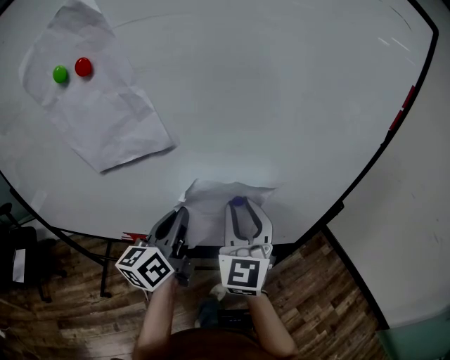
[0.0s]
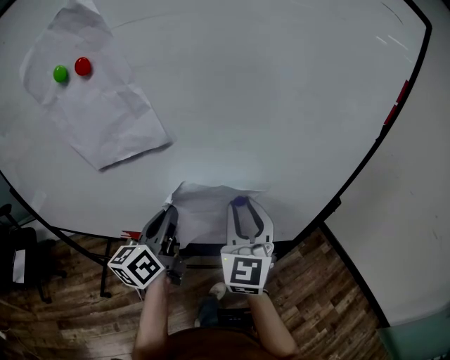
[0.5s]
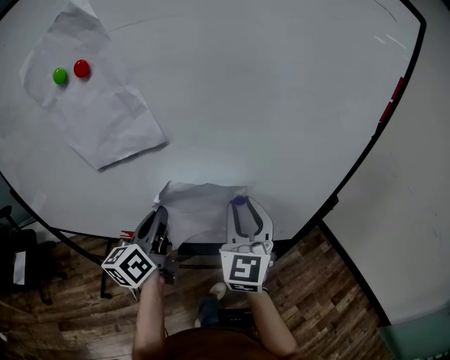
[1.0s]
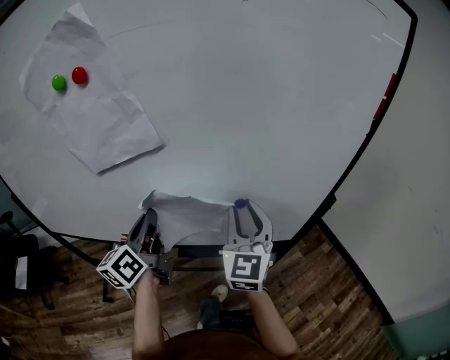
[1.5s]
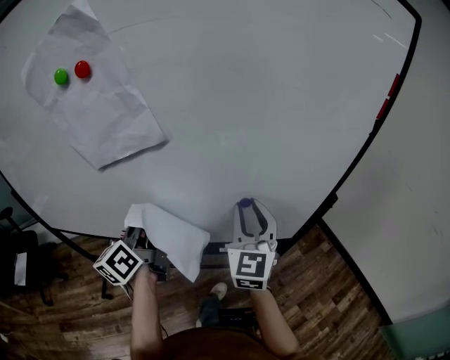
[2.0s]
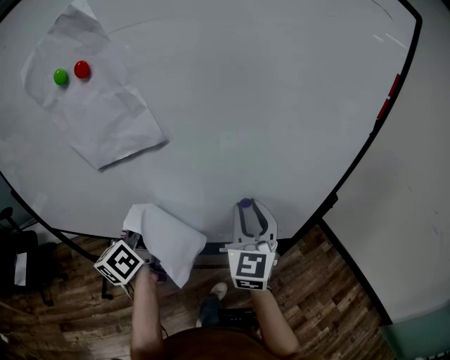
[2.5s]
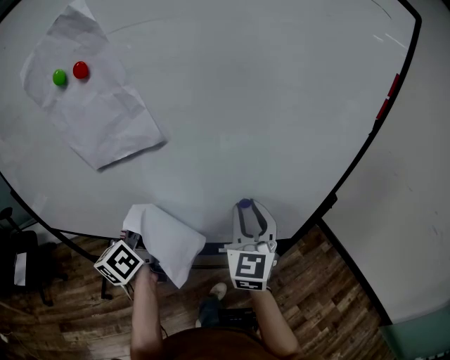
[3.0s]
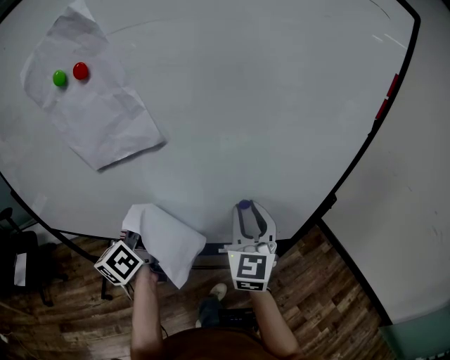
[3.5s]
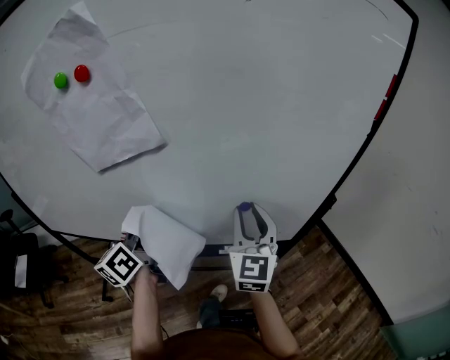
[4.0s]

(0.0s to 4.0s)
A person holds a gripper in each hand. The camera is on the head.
0.0s - 2.0s: The left gripper moves to the left, approximately 10 cm.
2.0s - 4.0s: Neither gripper changes place.

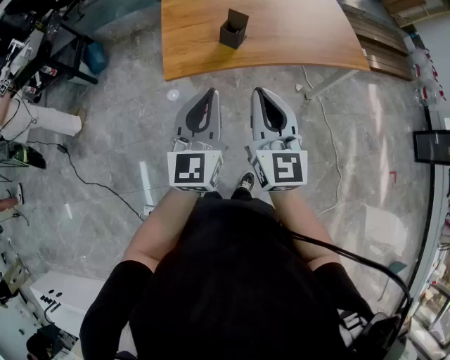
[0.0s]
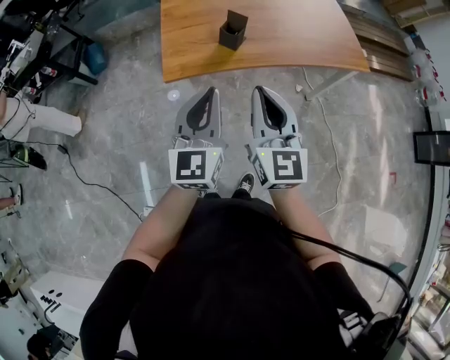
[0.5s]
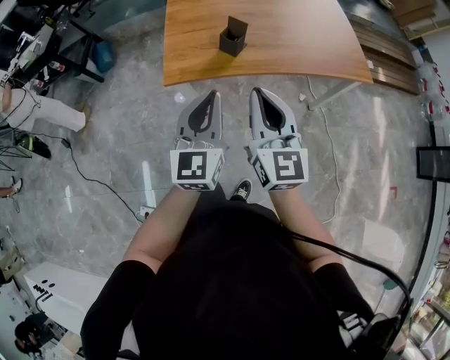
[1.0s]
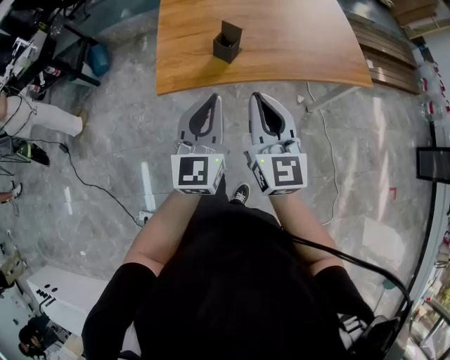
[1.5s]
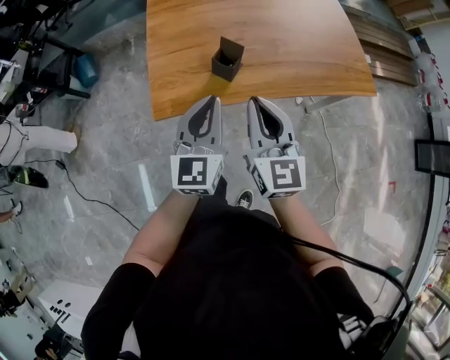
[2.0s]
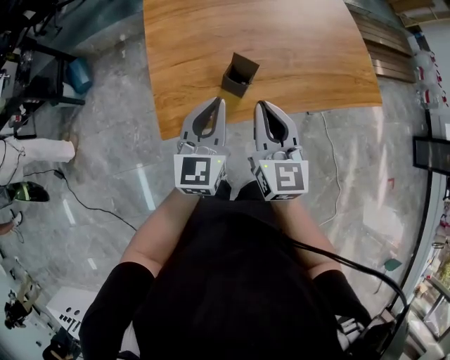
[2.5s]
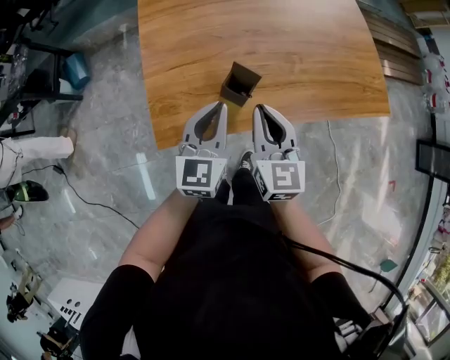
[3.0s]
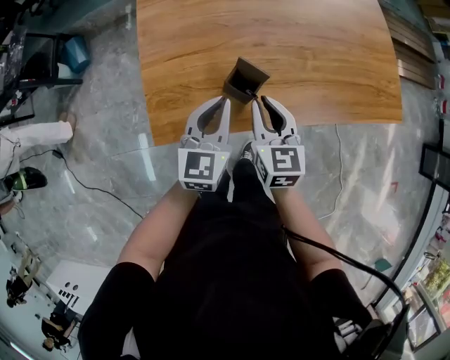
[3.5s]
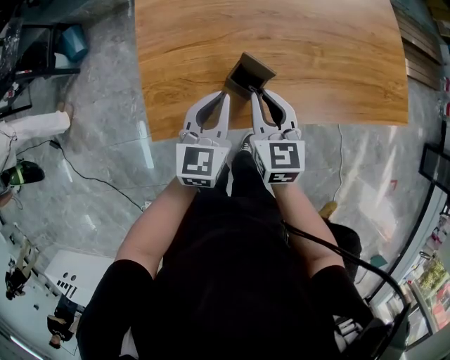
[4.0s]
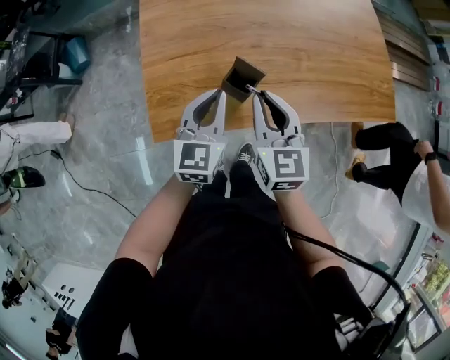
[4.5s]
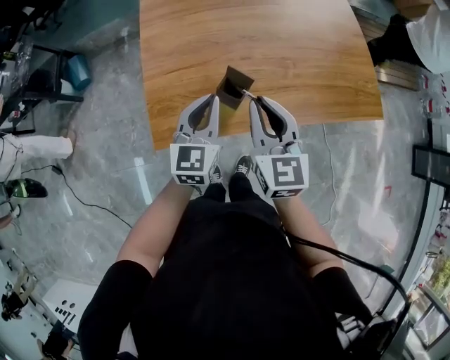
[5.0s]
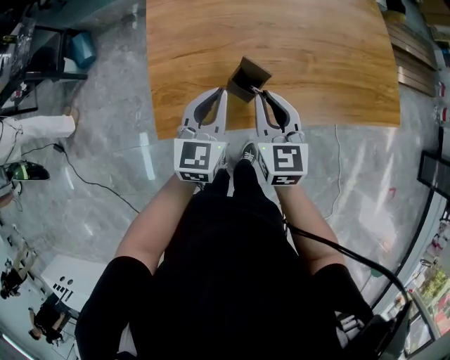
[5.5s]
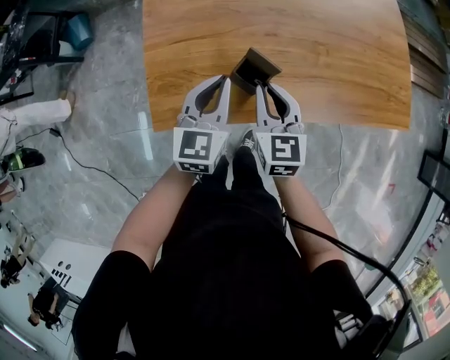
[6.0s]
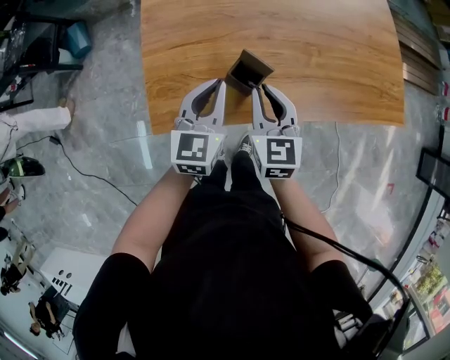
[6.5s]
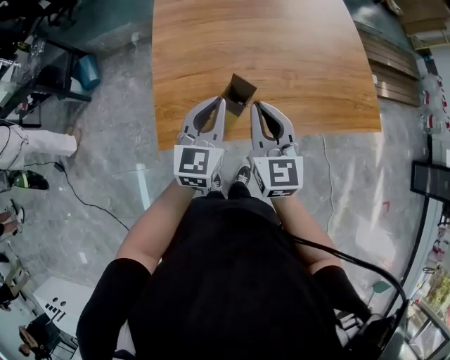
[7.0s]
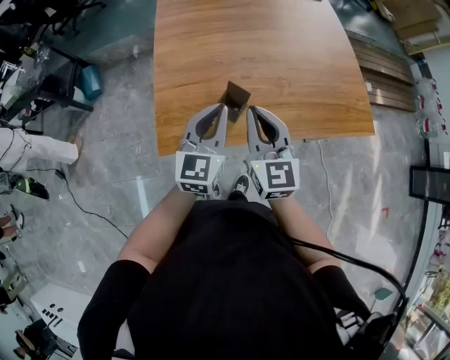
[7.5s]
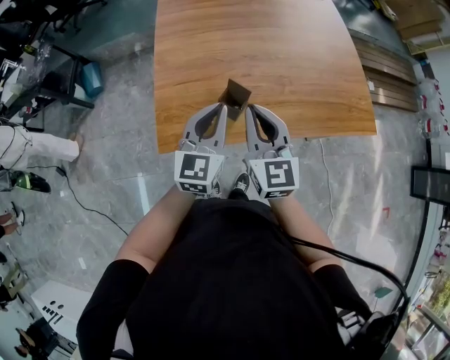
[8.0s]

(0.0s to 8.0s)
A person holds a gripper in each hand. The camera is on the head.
0.0s - 2.0s: The grippers both shift forward by approximately 20 cm.
2.0s - 4.0s: The right gripper shifts some 25 cm downward and forward, and turns by roughly 20 degrees. Meanwhile the left gripper travels forward and downward by about 25 cm.
4.0s - 6.0s: The left gripper reaches about 10 cm upward, then returns. The right gripper moves approximately 15 cm upward and comes back.
6.0s - 8.0s: The right gripper moves upward, about 20 cm, and swivels some 20 degrees, while the left gripper goes some 15 cm upward and backward.

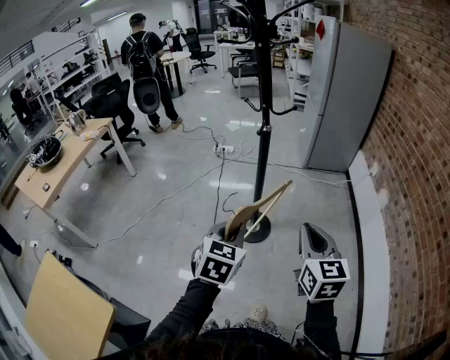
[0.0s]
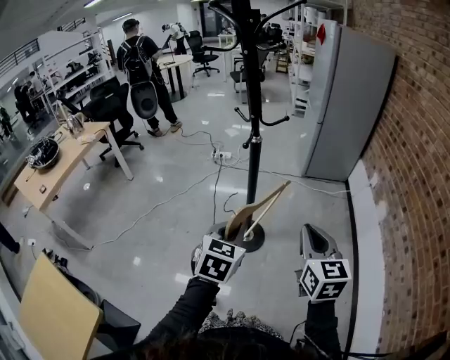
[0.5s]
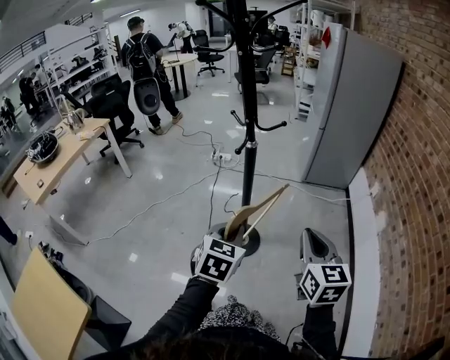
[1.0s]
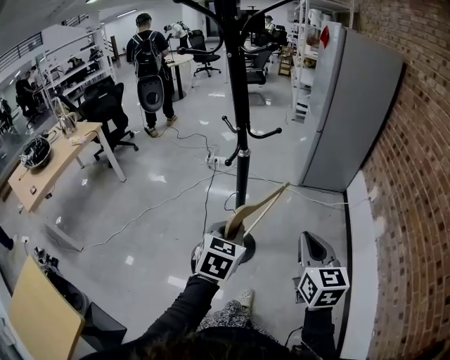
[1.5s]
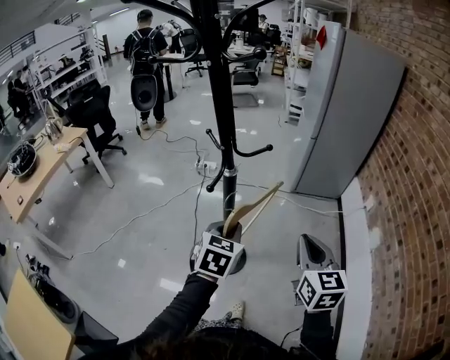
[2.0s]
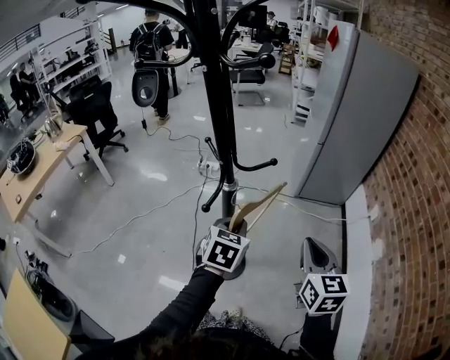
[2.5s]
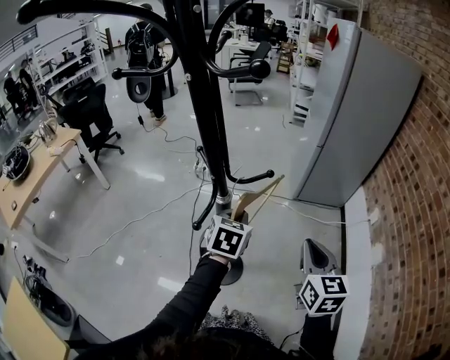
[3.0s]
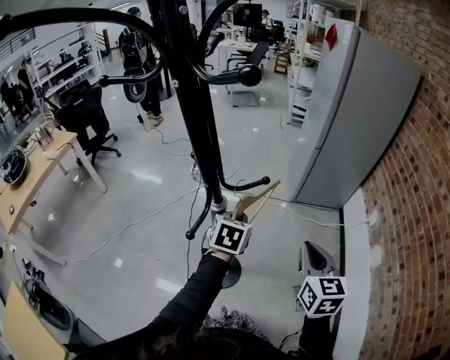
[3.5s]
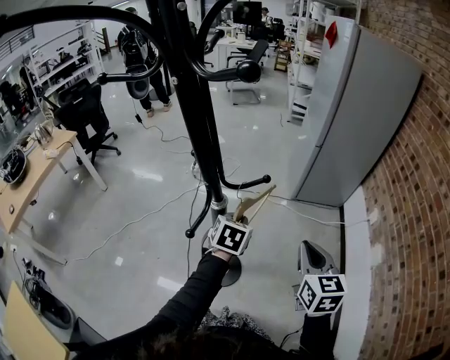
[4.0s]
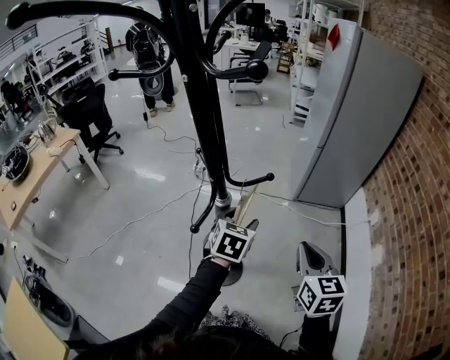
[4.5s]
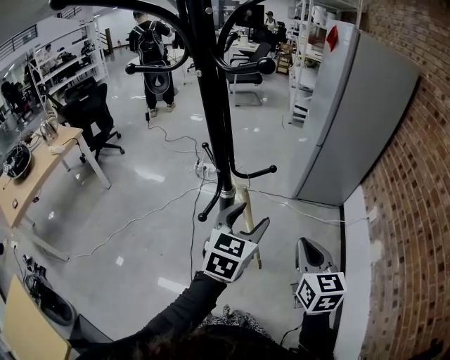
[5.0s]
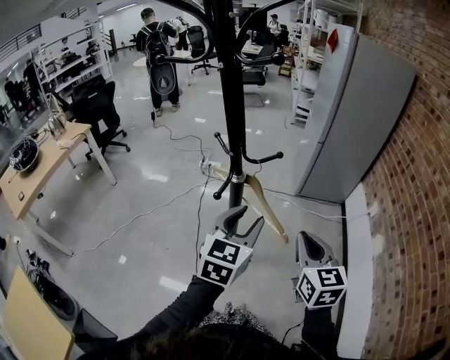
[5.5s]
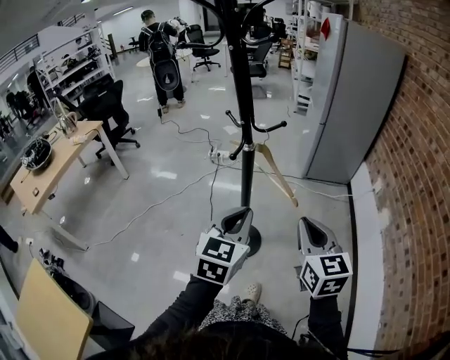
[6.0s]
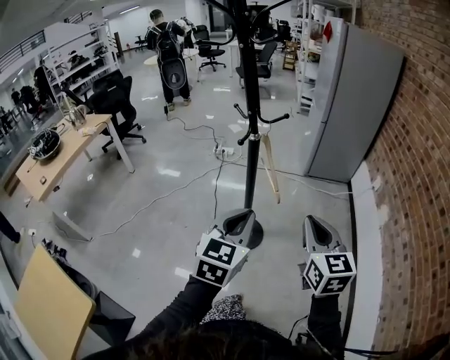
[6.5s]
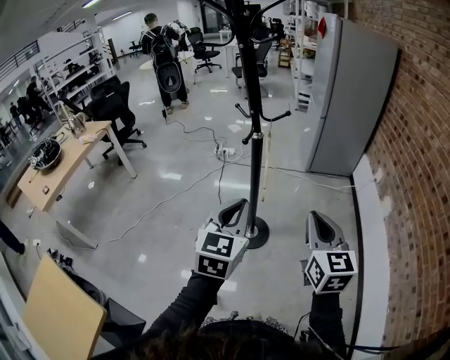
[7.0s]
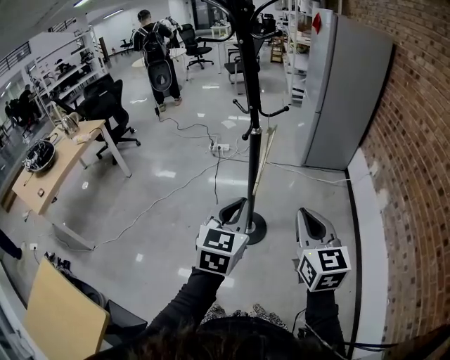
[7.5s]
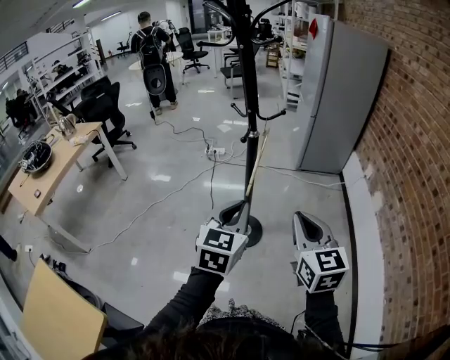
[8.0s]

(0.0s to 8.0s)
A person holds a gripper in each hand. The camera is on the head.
0.0s - 2.0s: The two grippers go approximately 30 cm forward and to the right.
2.0s - 4.0s: The two grippers go some 15 cm forward.
4.0s - 6.0s: The left gripper moves backward and upward, some 35 cm, swivels approximately 30 degrees, and opens, then closes once more, while the right gripper moves backward, approximately 20 cm.
6.0s - 8.0s: The grippers both shift backward by about 10 cm.

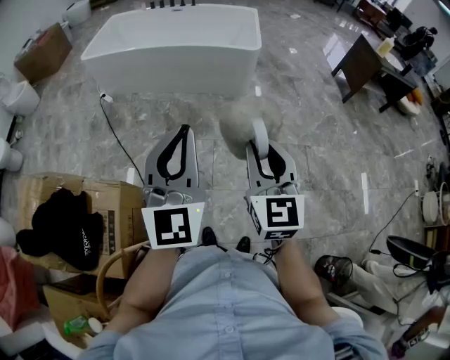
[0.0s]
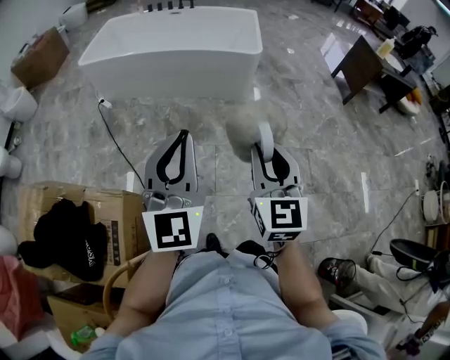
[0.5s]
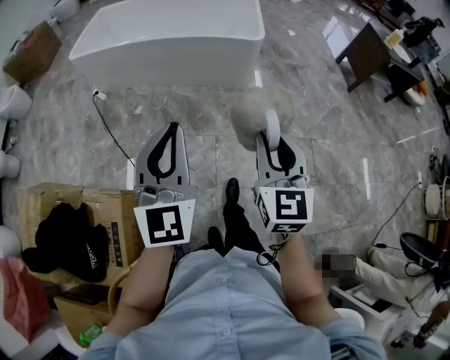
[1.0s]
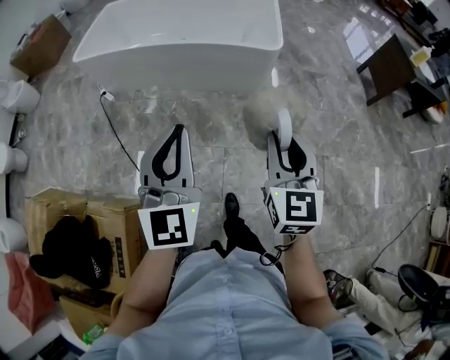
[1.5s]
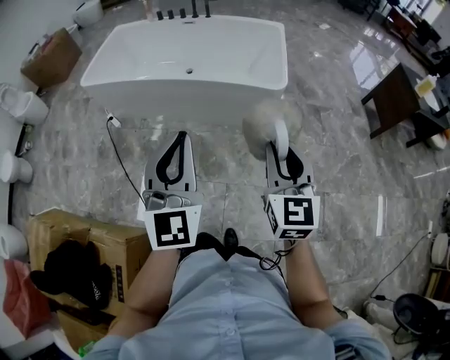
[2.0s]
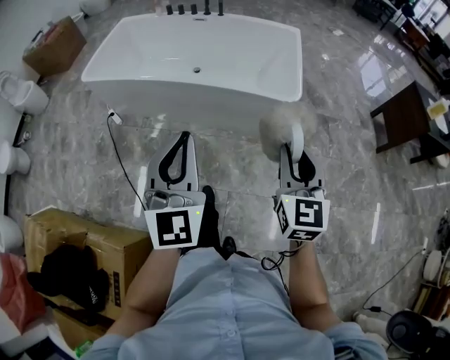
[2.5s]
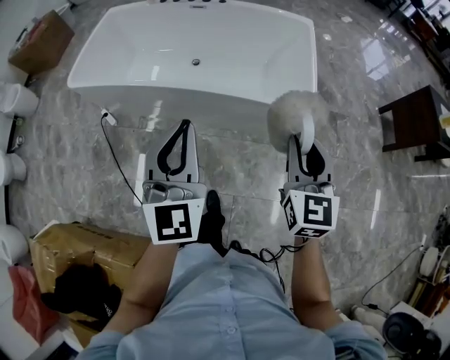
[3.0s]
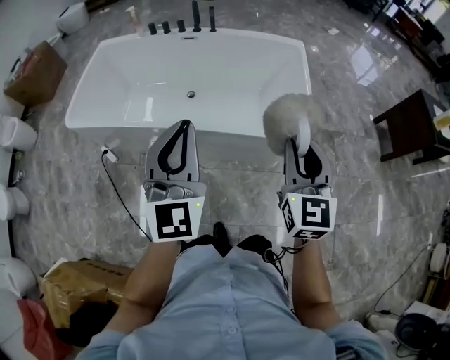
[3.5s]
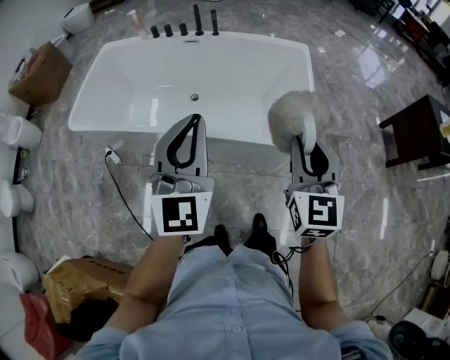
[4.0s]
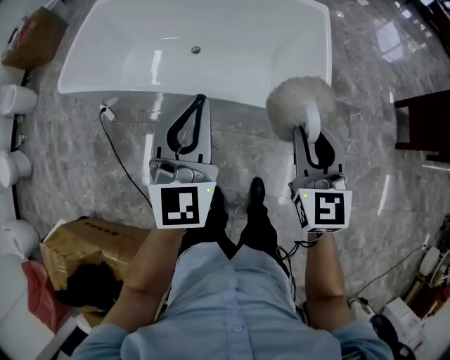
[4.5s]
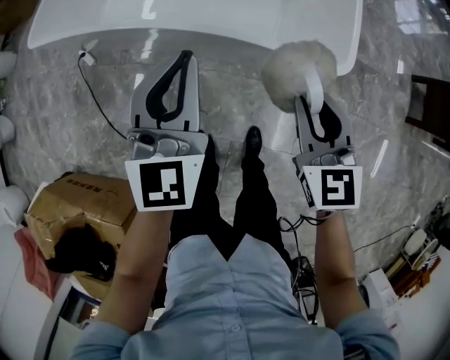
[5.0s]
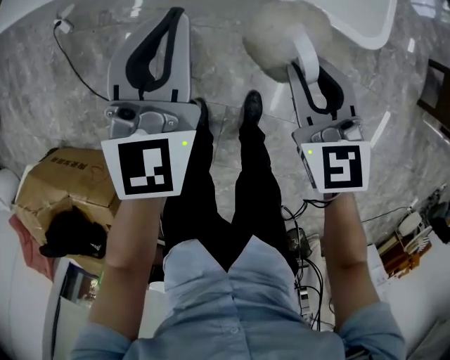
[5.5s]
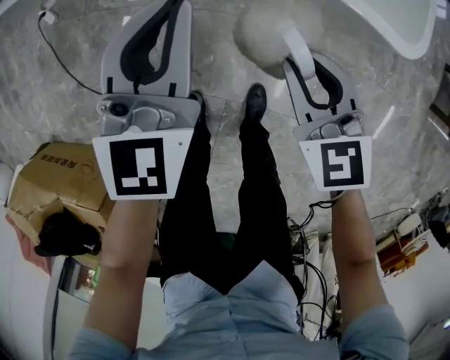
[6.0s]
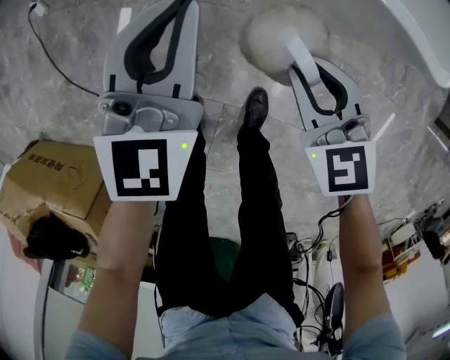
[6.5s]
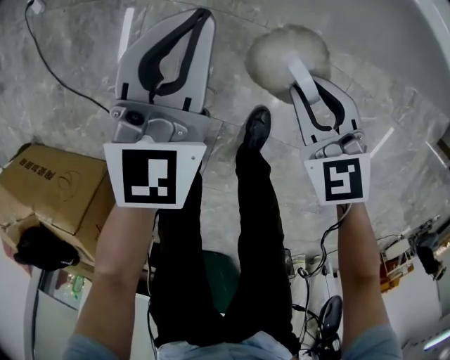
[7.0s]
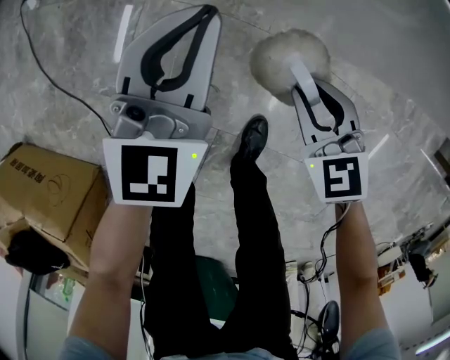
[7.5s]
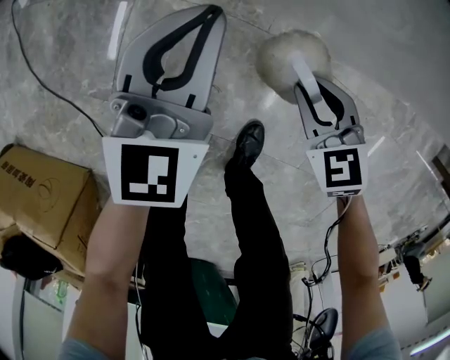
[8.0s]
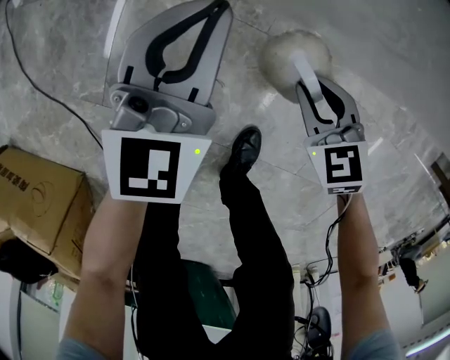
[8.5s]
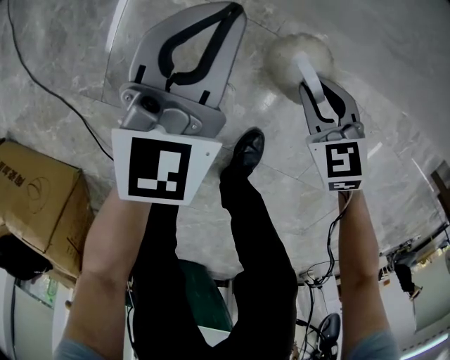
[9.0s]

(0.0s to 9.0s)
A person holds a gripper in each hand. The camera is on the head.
0.0s - 2.0s: The two grippers travel together, forward, roughly 40 cm.
2.0s - 4.5s: The two grippers travel together, forward, roughly 40 cm.
4.5s - 7.0s: The grippers both shift downward by about 60 cm. The right gripper turns by about 40 degrees.
7.0s - 9.0s: Both grippers travel together downward, approximately 20 cm.
